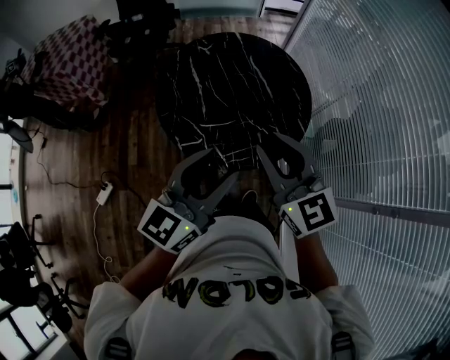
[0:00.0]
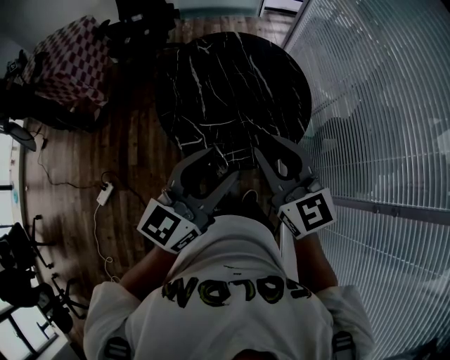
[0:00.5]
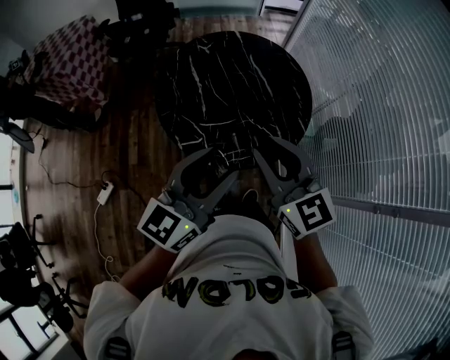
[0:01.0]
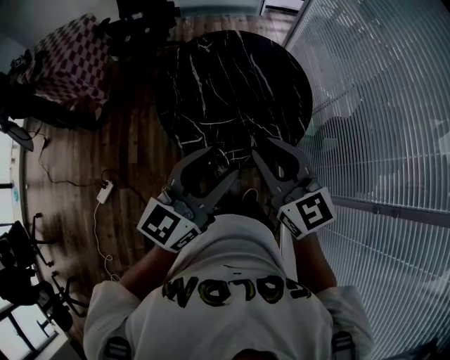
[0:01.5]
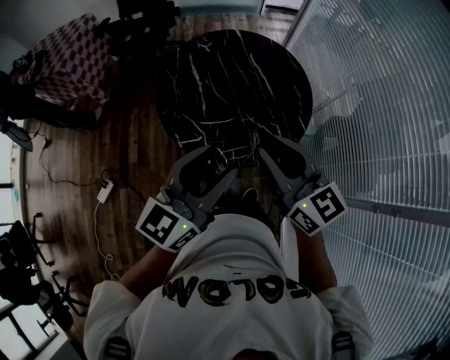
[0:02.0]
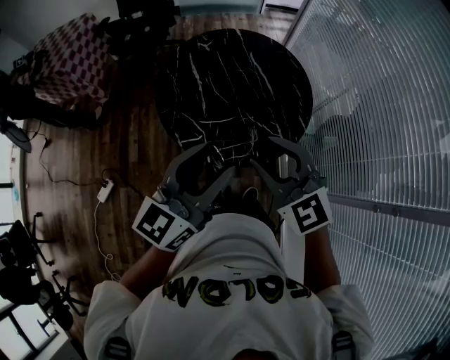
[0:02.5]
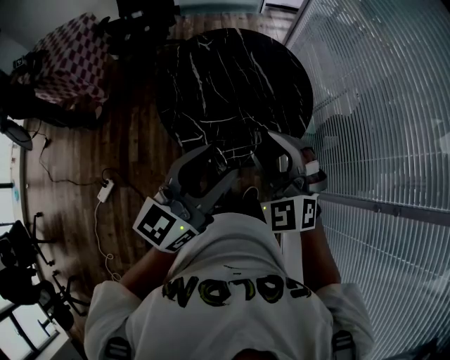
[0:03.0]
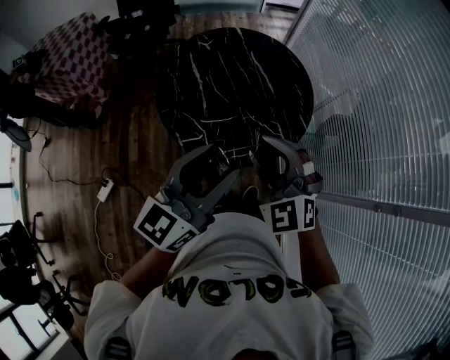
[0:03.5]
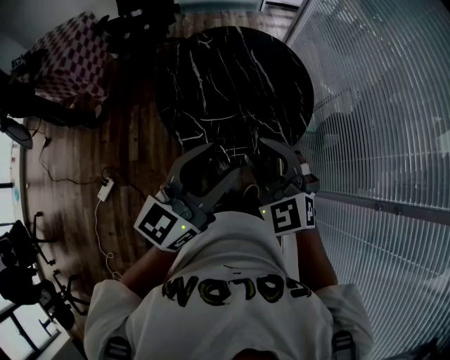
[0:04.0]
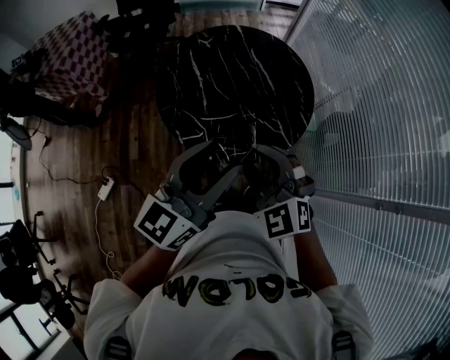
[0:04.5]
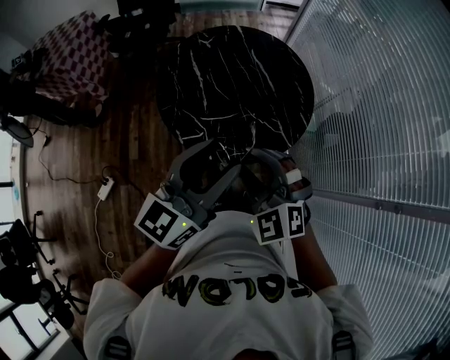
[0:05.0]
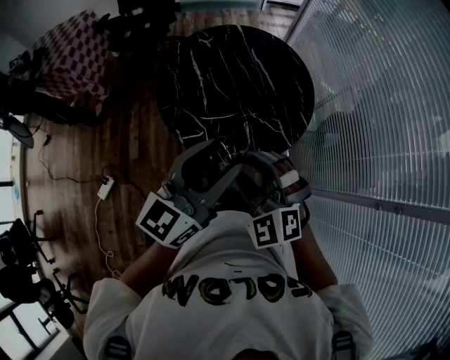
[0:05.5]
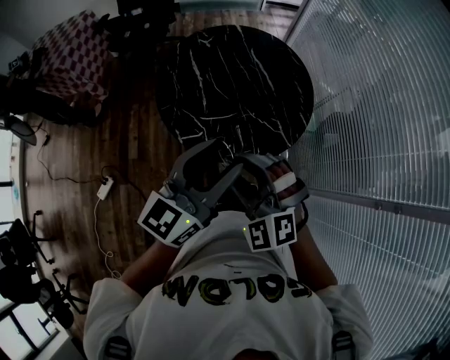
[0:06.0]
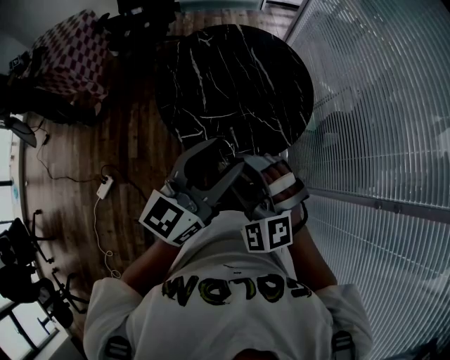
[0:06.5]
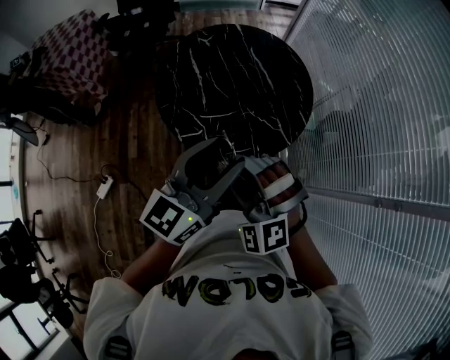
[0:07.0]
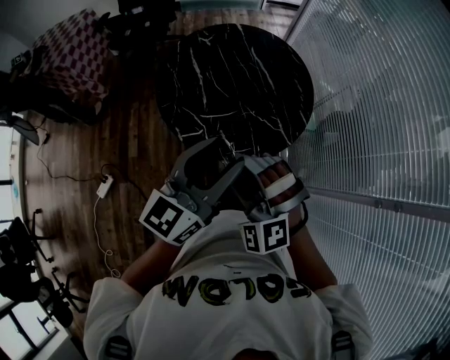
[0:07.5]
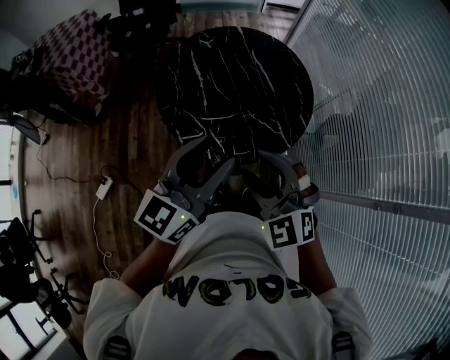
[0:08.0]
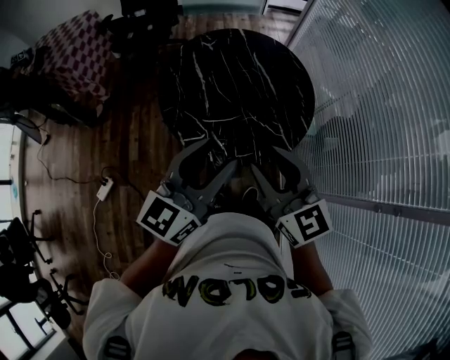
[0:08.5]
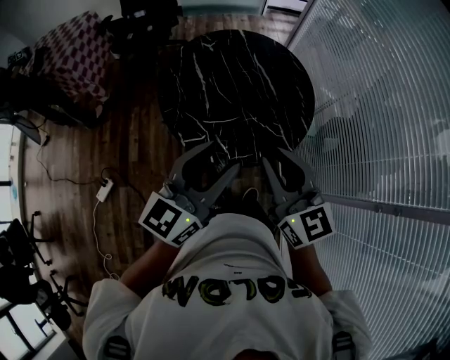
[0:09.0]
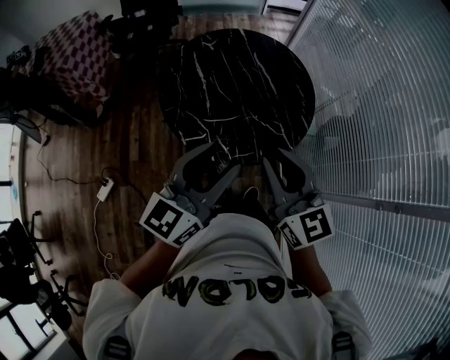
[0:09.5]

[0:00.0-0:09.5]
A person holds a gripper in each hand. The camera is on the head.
0:00.0 to 0:02.0: The grippers make only small movements.
0:02.0 to 0:04.0: The right gripper travels downward by about 5 cm, and turns by approximately 40 degrees.
0:04.0 to 0:05.5: The right gripper changes place by roughly 5 cm.
0:05.5 to 0:07.5: The grippers stay close to where they were, moving slightly.
0:07.5 to 0:09.5: The right gripper travels upward and to the right by about 10 cm, twists approximately 70 degrees clockwise, seen from behind, and closes.

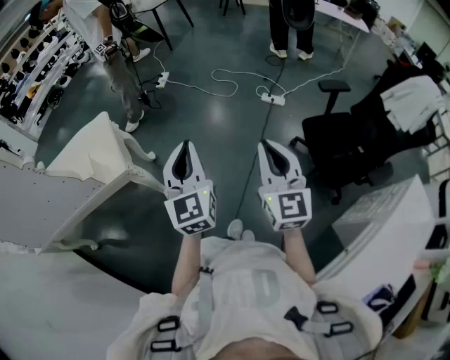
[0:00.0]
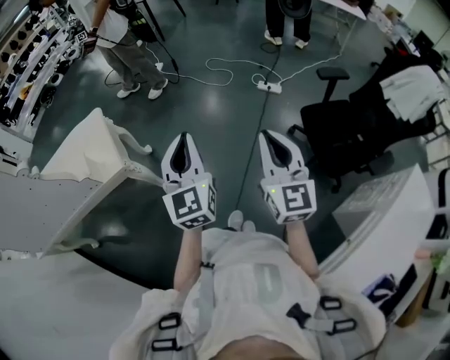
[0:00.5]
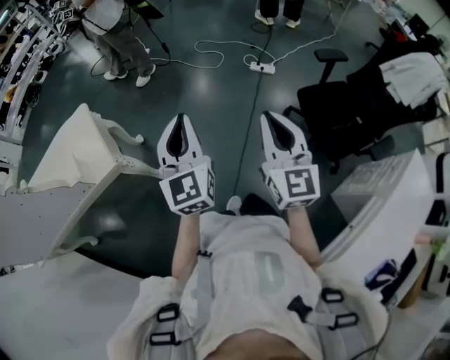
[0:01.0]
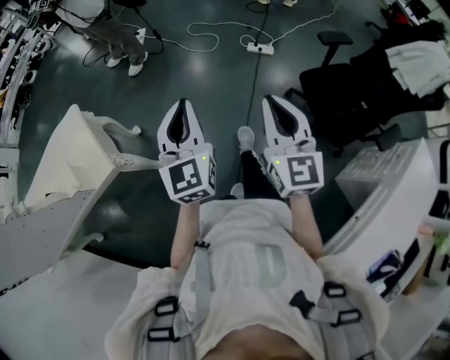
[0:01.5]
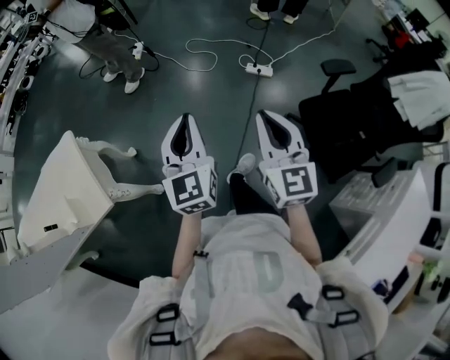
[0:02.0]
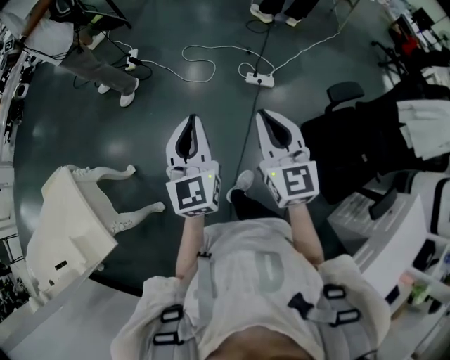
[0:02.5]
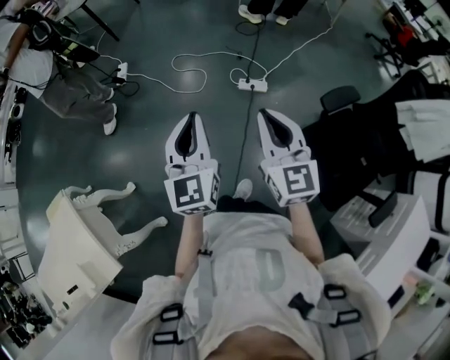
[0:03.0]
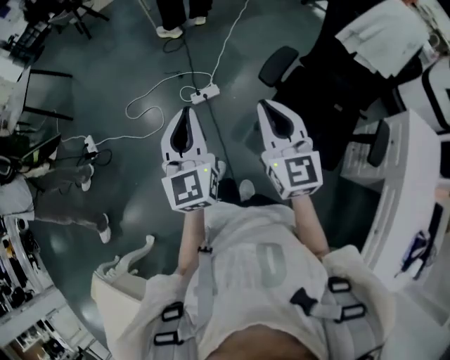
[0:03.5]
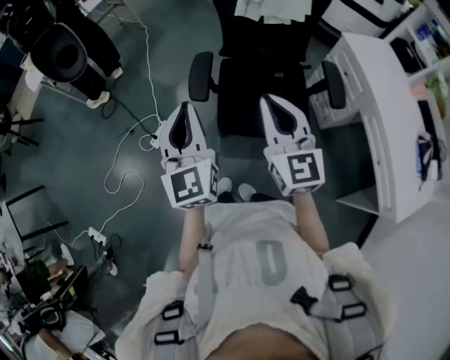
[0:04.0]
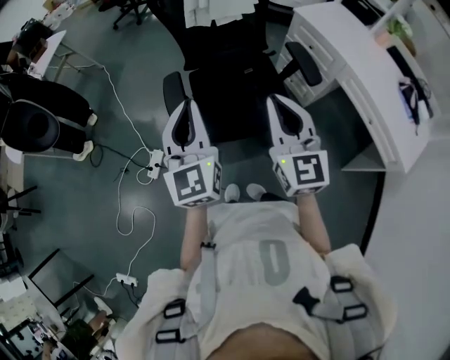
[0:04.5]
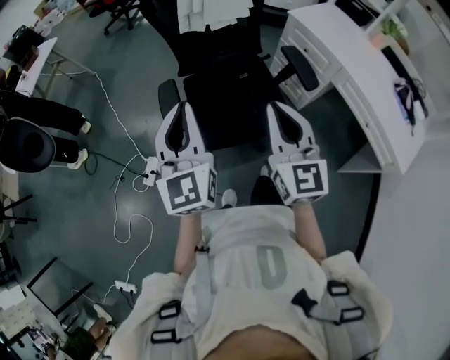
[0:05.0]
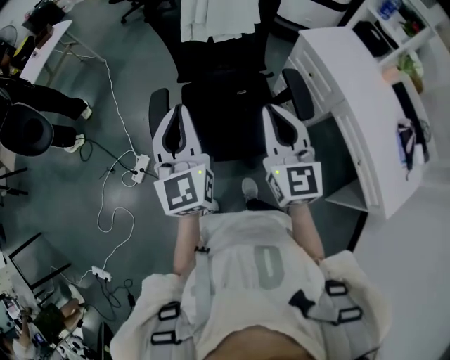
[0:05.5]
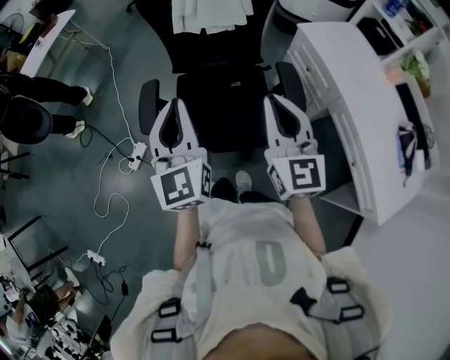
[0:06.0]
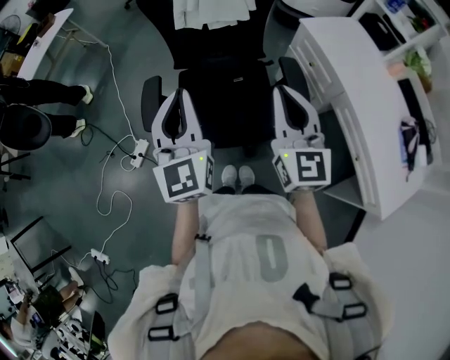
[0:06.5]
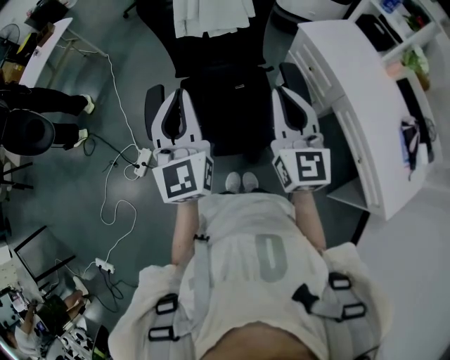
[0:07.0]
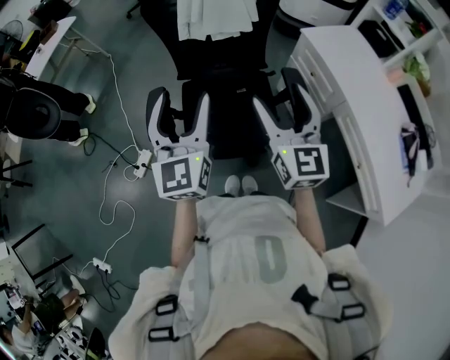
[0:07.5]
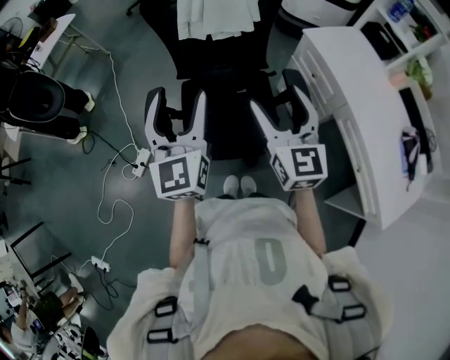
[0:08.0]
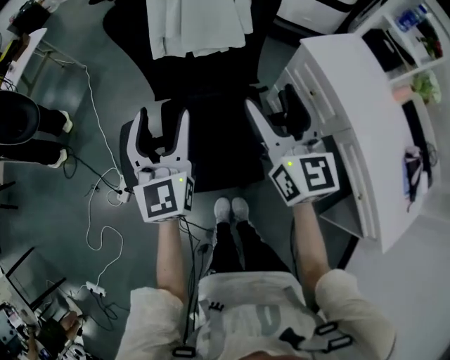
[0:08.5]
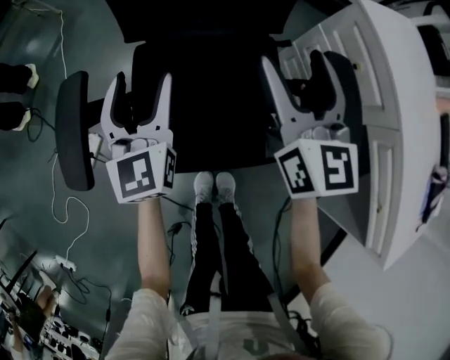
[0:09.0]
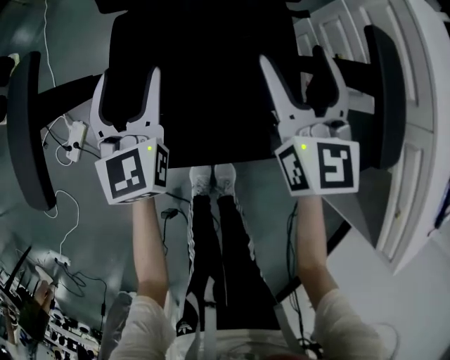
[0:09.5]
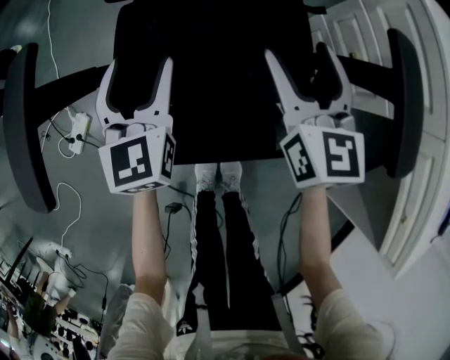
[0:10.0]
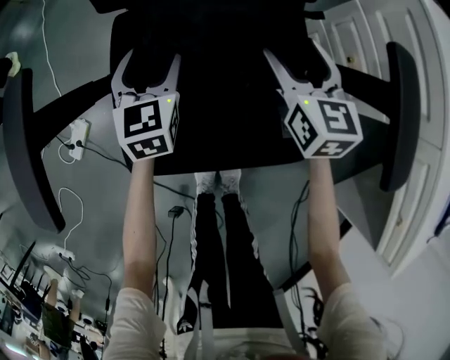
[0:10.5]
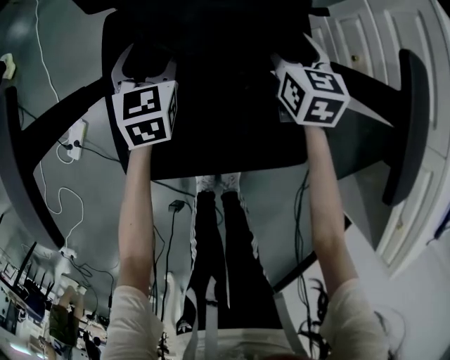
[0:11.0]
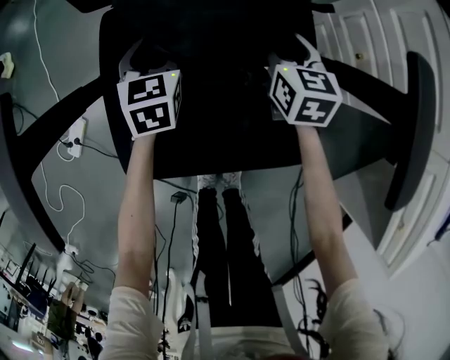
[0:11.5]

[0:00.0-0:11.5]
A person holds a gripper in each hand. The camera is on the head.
0:00.0 to 0:02.0: The two grippers go about 25 cm forward.
0:02.0 to 0:04.0: The two grippers travel together, about 50 cm. The left gripper turns by roughly 70 degrees. The right gripper swivels some 70 degrees.
0:04.0 to 0:06.0: The left gripper is displaced to the right and forward by some 20 cm; the right gripper is displaced to the right by roughly 20 cm.
0:06.0 to 0:07.5: The right gripper opens up; the left gripper opens up.
0:07.5 to 0:09.5: The left gripper heads downward, covering roughly 50 cm; the right gripper shifts some 50 cm downward and forward.
0:09.5 to 0:11.5: Both grippers travel together downward and forward, some 20 cm. The right gripper swivels some 30 degrees. The left gripper swivels roughly 30 degrees.

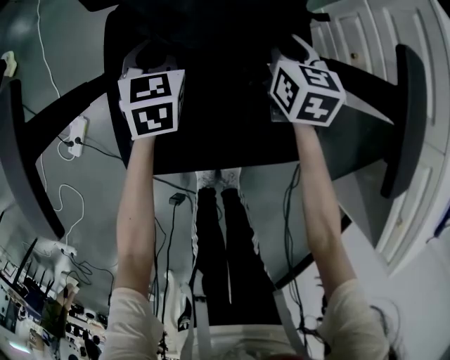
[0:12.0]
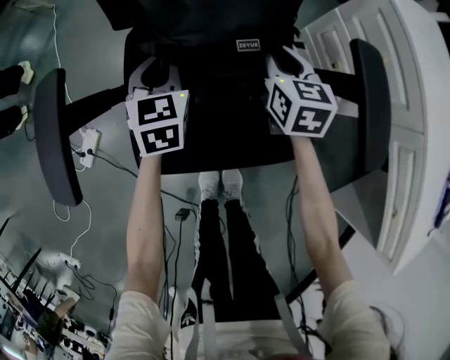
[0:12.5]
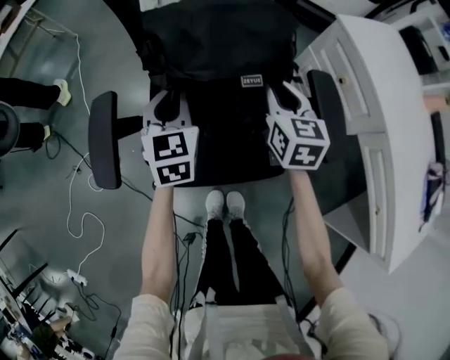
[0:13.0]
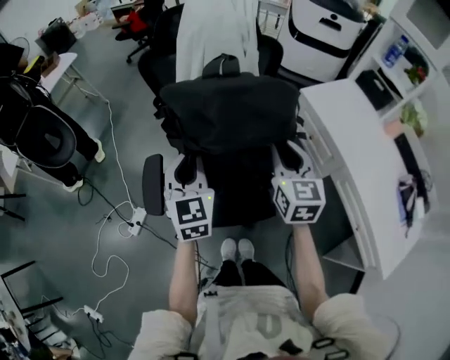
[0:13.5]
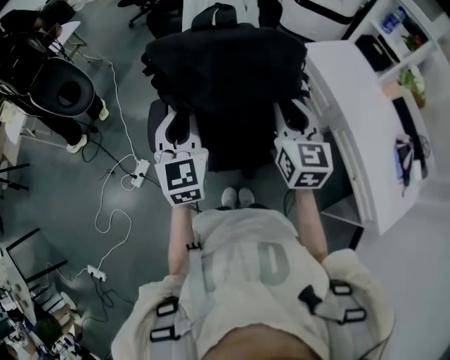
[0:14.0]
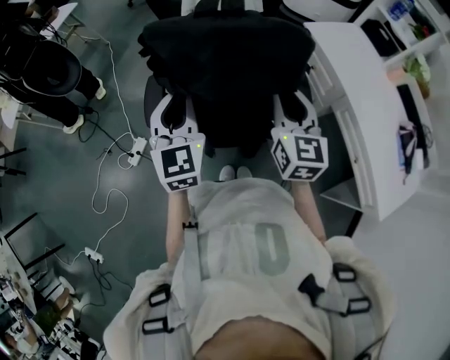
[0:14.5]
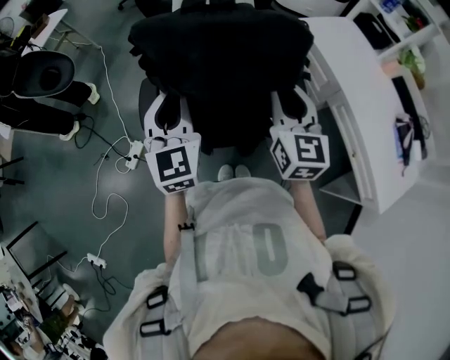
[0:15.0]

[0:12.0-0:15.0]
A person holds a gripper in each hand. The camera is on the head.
0:12.0 to 0:13.5: Both grippers move upward, about 50 cm. The left gripper changes its angle by roughly 20 degrees, while the right gripper rotates roughly 20 degrees.
0:13.5 to 0:15.0: The grippers both shift backward and upward by some 15 cm.

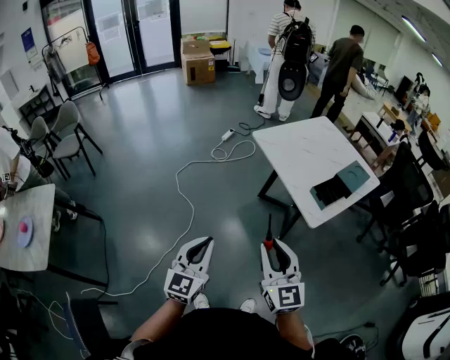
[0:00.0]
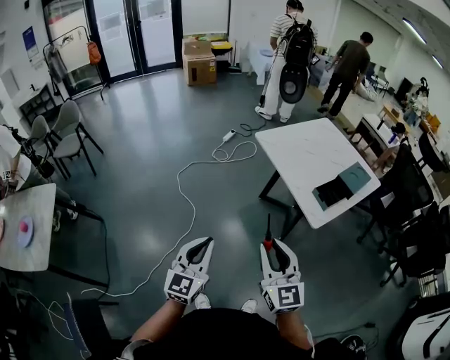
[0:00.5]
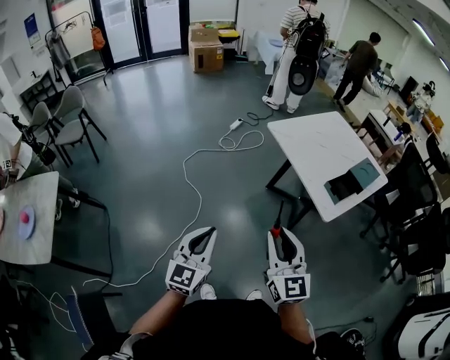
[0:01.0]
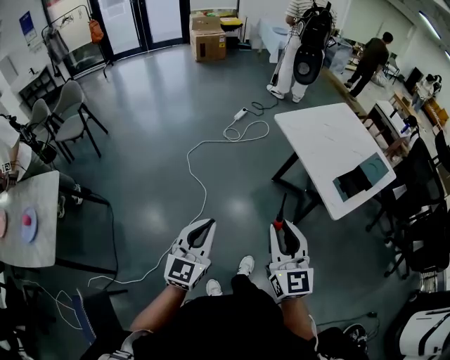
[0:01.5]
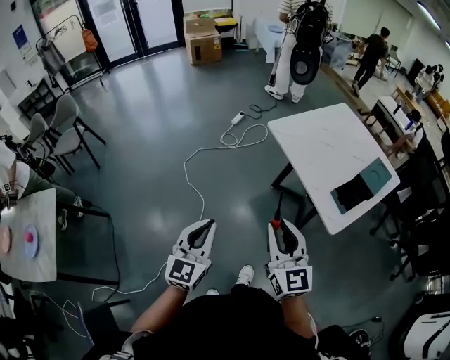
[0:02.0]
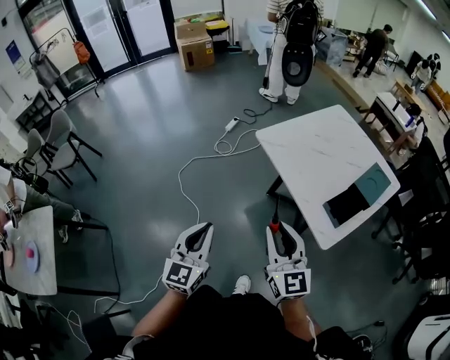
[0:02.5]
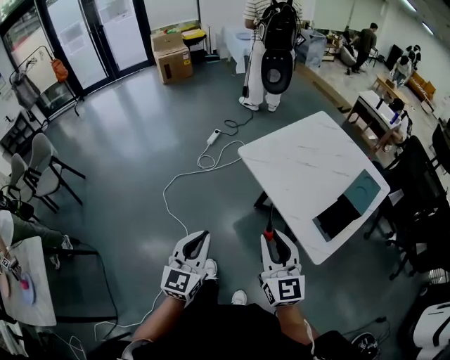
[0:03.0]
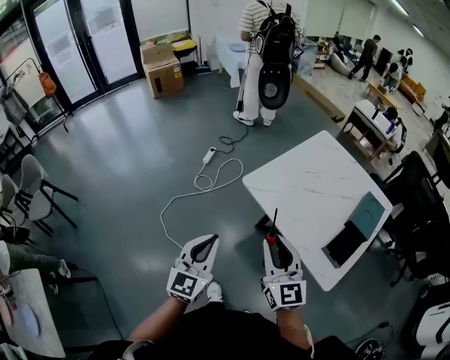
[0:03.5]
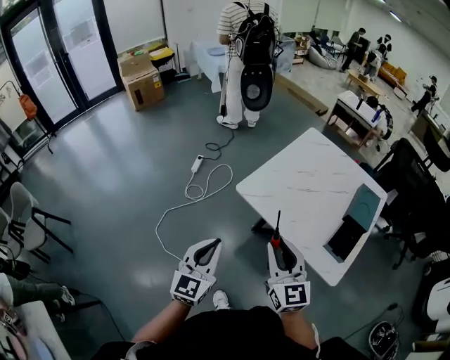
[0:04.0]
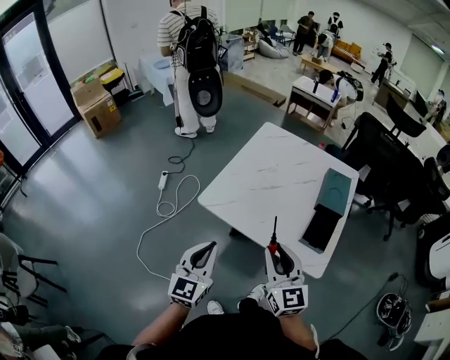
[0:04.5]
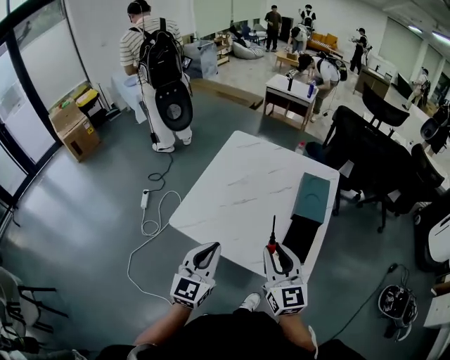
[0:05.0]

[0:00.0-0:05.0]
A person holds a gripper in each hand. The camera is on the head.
0:00.0 to 0:02.5: Both grippers travel together forward, about 20 cm.
0:02.5 to 0:05.0: The left gripper moves some 40 cm, and swivels about 40 degrees. The right gripper shifts by approximately 30 cm, and turns by some 40 degrees.
